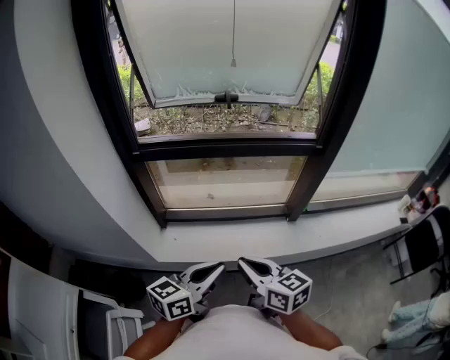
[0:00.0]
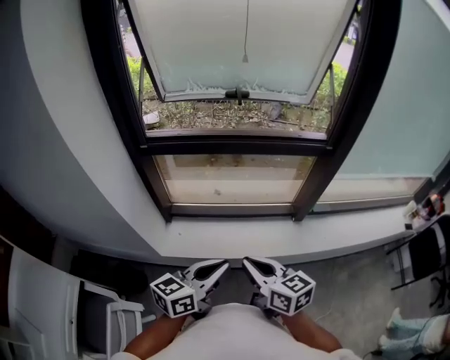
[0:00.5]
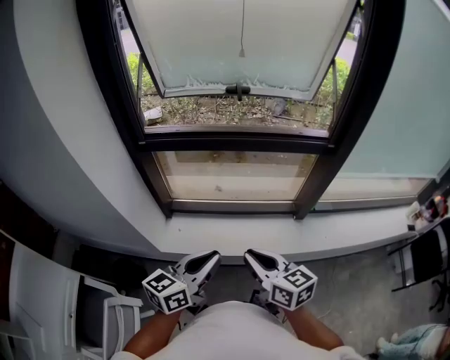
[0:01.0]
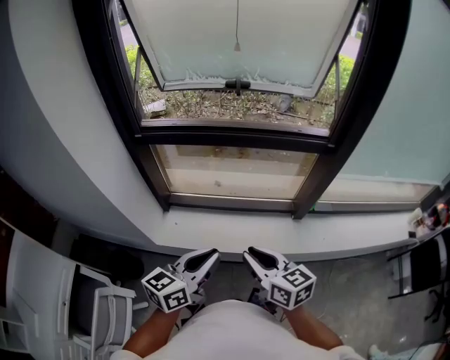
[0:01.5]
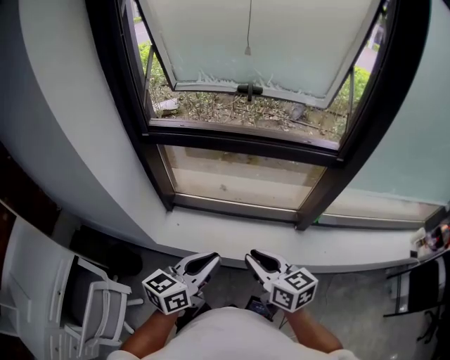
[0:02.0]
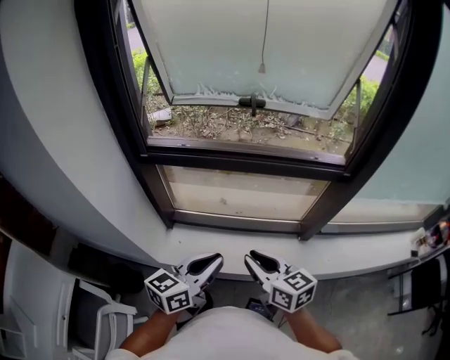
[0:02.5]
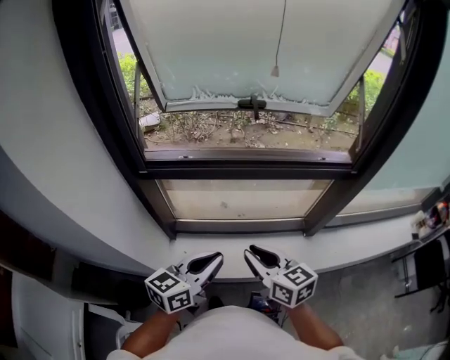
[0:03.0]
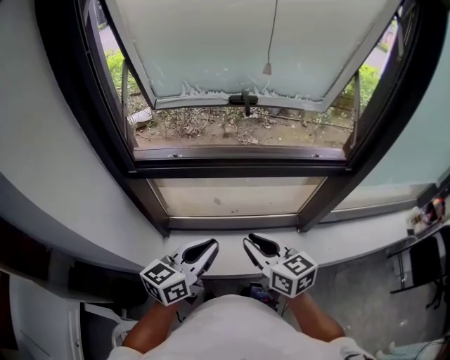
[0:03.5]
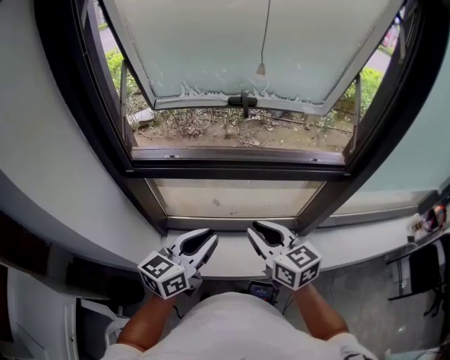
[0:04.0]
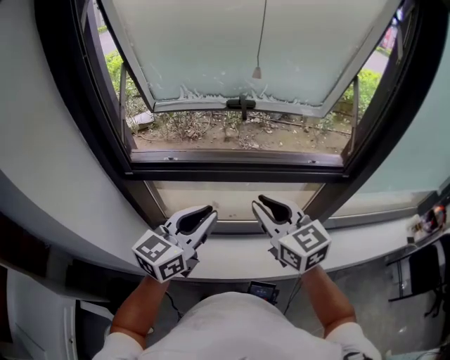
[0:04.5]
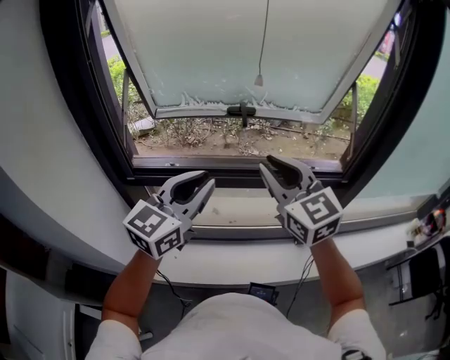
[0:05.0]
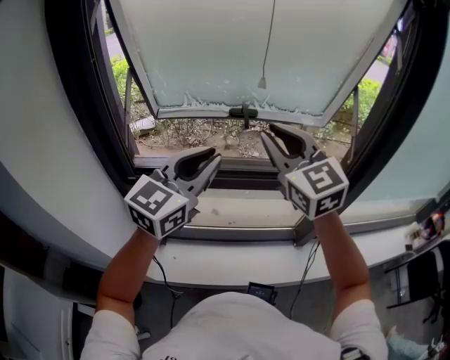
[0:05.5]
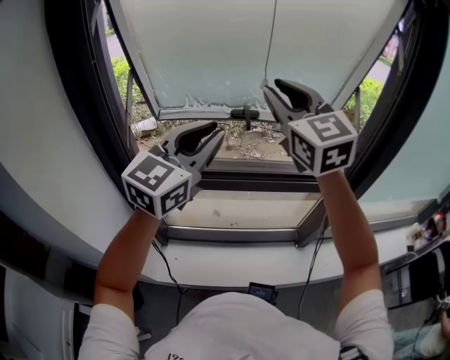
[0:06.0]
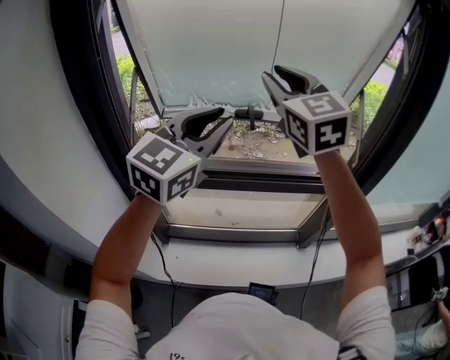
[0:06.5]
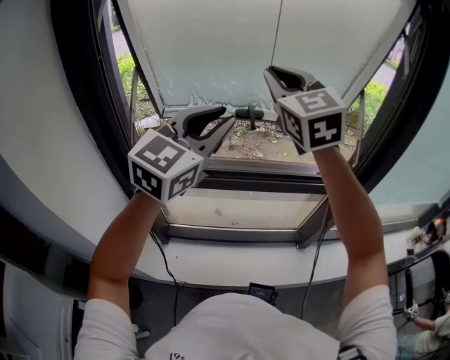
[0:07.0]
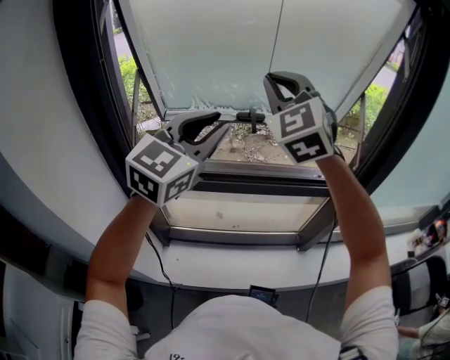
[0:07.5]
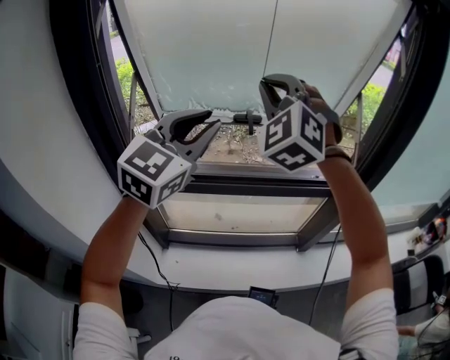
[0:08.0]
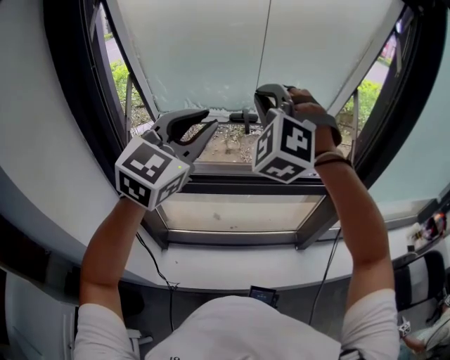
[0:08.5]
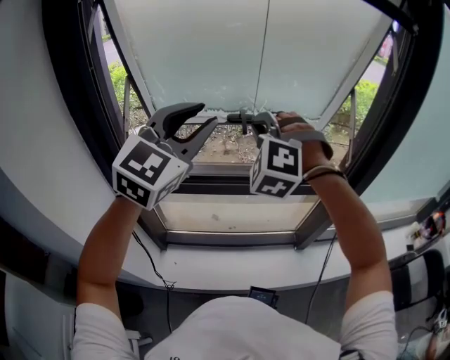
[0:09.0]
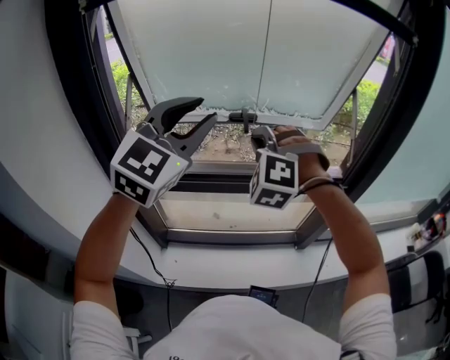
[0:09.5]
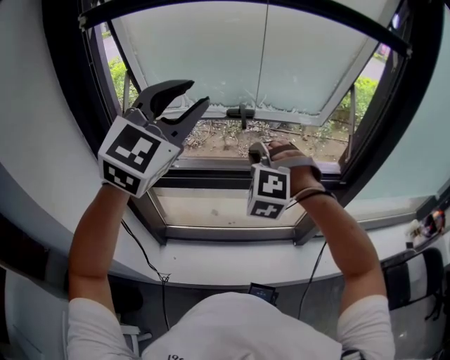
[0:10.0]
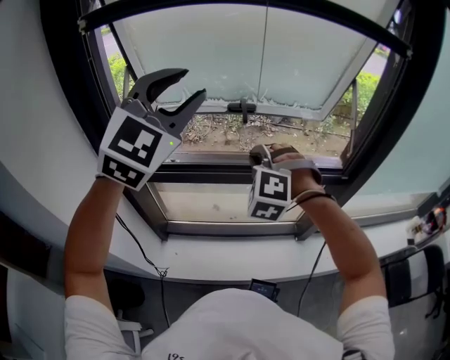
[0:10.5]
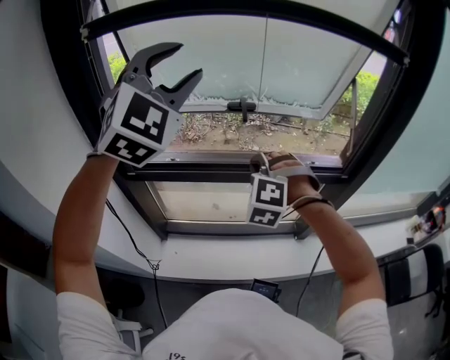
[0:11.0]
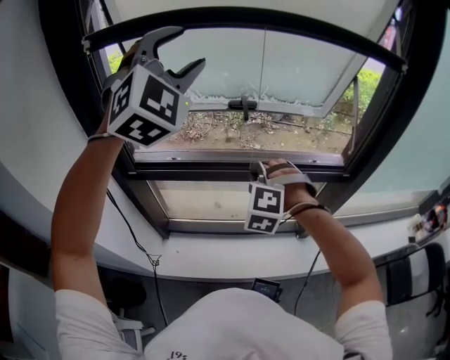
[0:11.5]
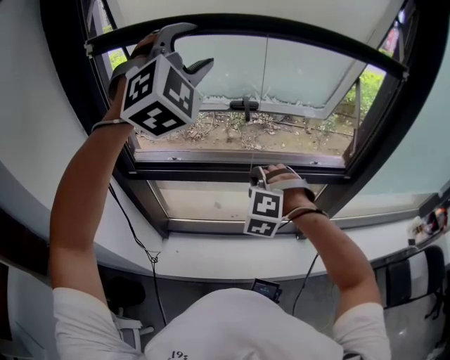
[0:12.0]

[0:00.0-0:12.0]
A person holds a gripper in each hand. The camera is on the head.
0:00.0 to 0:02.0: The left gripper ends up some 5 cm from where it was. The right gripper moves to the right and forward, about 10 cm.
0:02.0 to 0:04.0: The left gripper travels forward and to the left by about 20 cm. Meanwhile the right gripper goes roughly 20 cm forward.
0:04.0 to 0:06.0: Both grippers travel together upward and forward, approximately 30 cm. The right gripper rotates some 40 degrees; the left gripper swivels about 40 degrees.
0:06.0 to 0:08.0: The right gripper rolls counterclockwise, seen from behind, by some 40 degrees.
0:08.0 to 0:10.0: The right gripper shifts roughly 20 cm downward, and rotates some 30 degrees; the left gripper heads upward, covering some 5 cm.
0:10.0 to 0:12.0: The right gripper shifts roughly 10 cm downward. Meanwhile the left gripper travels forward by approximately 5 cm, swivels approximately 40 degrees, and opens.

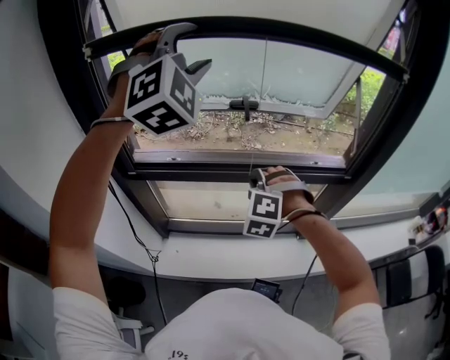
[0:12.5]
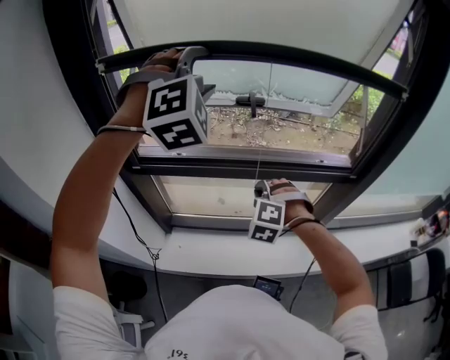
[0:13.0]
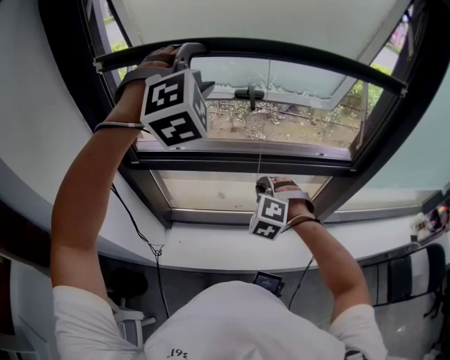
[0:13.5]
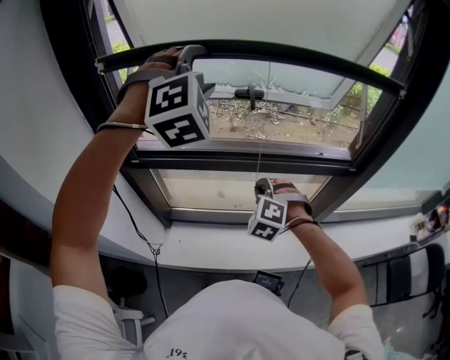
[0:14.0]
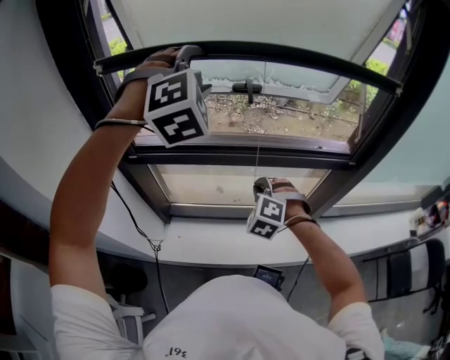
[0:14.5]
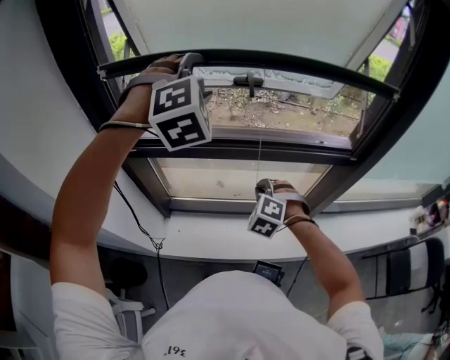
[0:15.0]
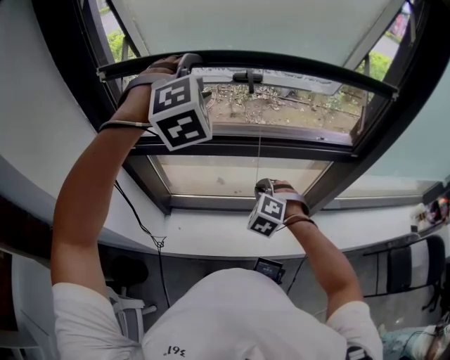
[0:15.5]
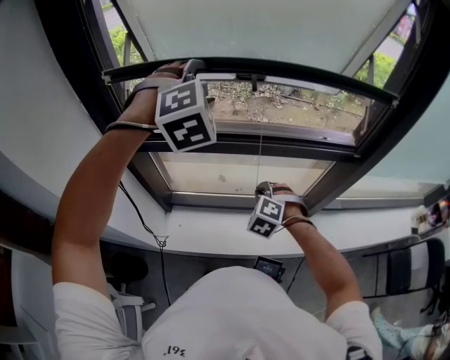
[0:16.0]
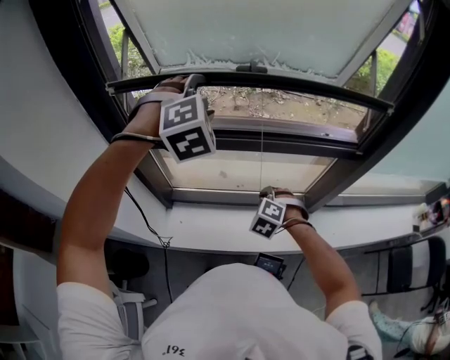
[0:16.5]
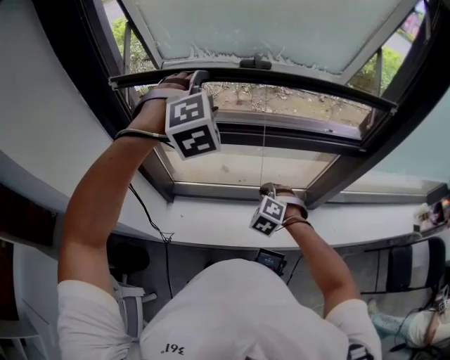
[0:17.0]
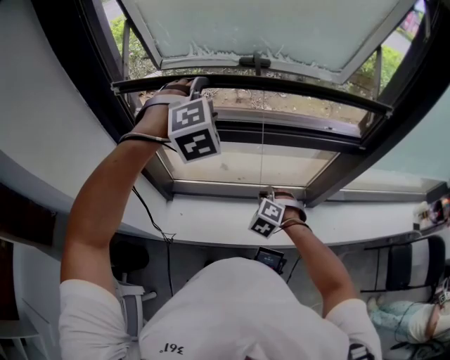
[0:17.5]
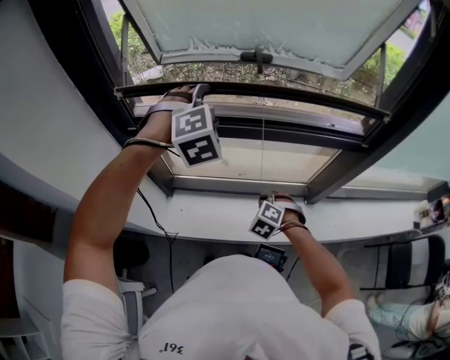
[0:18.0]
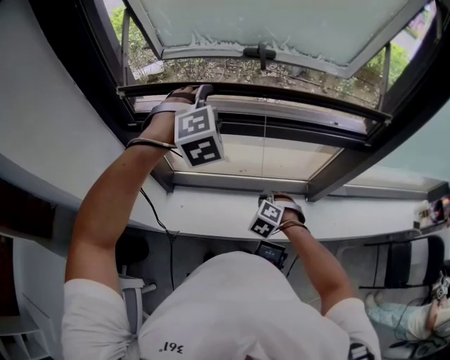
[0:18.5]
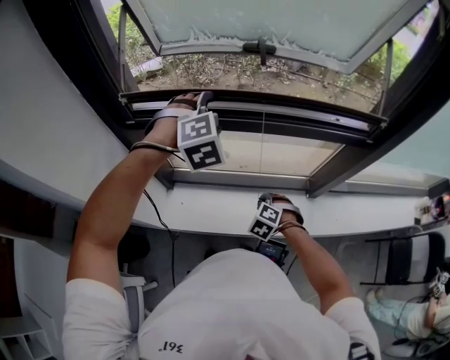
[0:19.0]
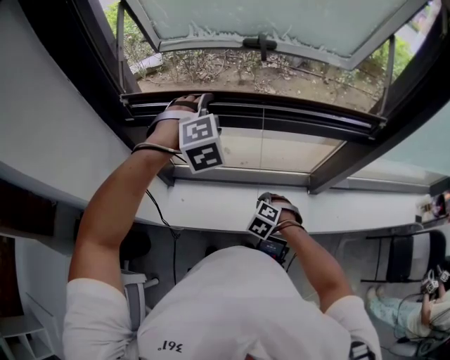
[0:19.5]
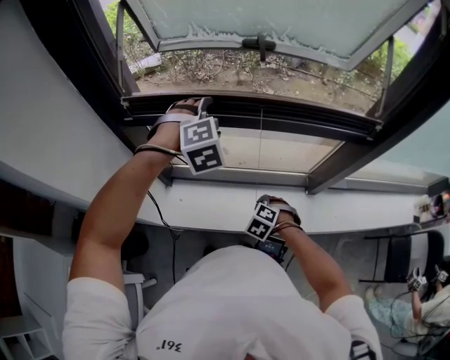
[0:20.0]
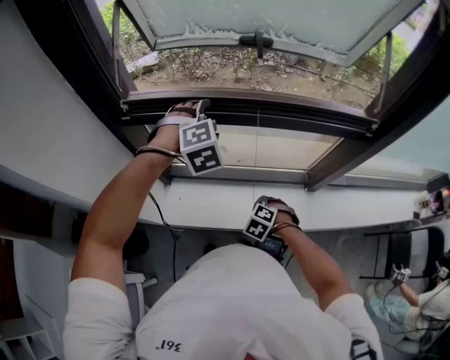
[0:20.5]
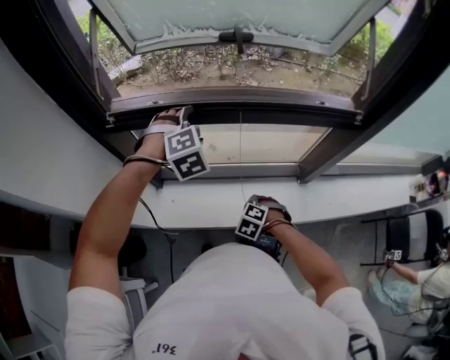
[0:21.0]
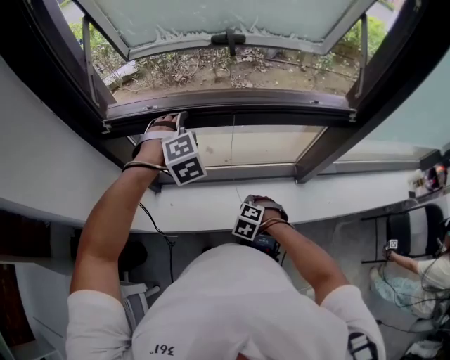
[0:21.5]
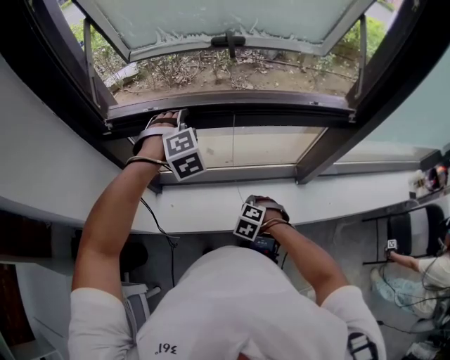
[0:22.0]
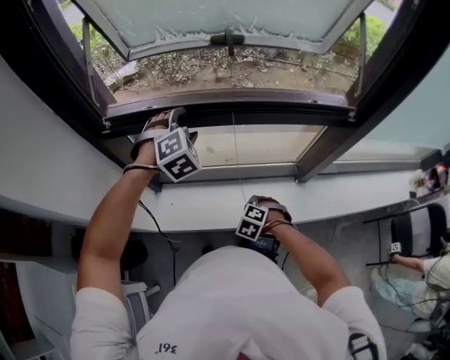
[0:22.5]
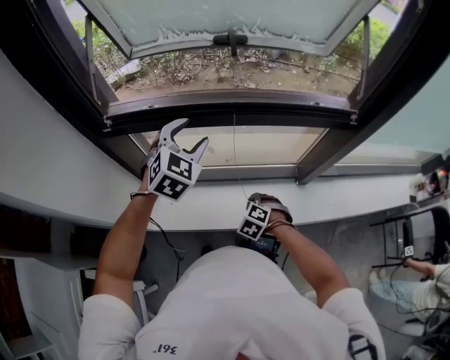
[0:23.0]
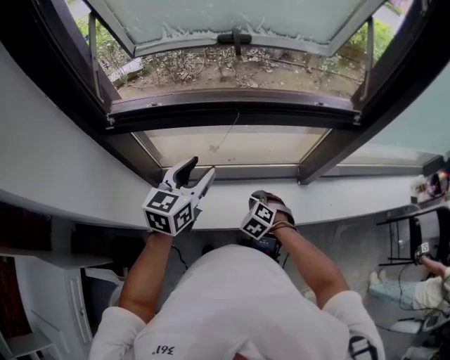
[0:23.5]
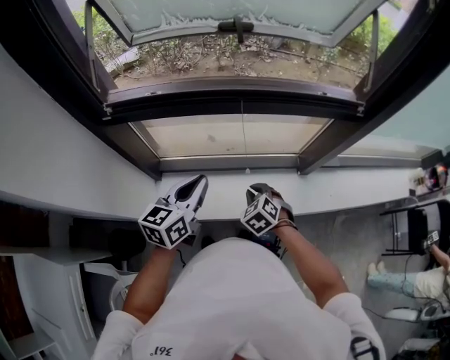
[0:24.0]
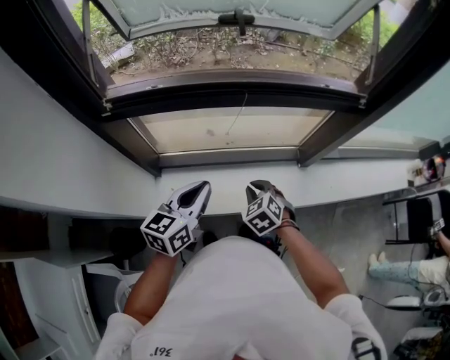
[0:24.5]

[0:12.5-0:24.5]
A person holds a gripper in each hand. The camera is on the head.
0:12.5 to 0:14.5: Both grippers move downward, about 10 cm.
0:14.5 to 0:16.5: Both grippers move downward, about 10 cm.
0:16.5 to 0:18.5: The two grippers go some 10 cm downward.
0:18.5 to 0:20.5: The right gripper travels downward and backward by roughly 5 cm, while the left gripper shifts roughly 10 cm downward.
0:20.5 to 0:22.5: The grippers stay close to where they were, moving slightly.
0:22.5 to 0:24.5: The right gripper moves upward, roughly 5 cm, and swivels roughly 30 degrees. The left gripper is displaced backward by some 20 cm, rolls counterclockwise, seen from behind, by about 70 degrees, and closes up.

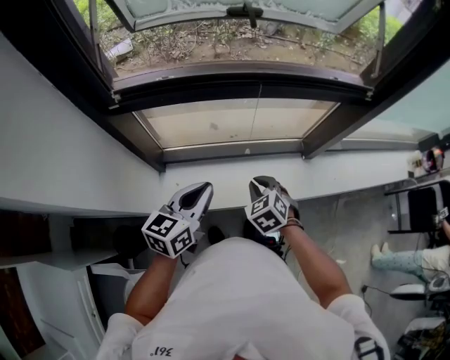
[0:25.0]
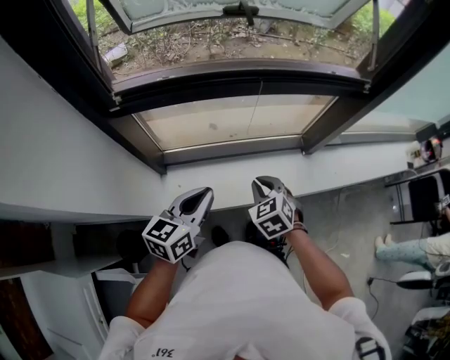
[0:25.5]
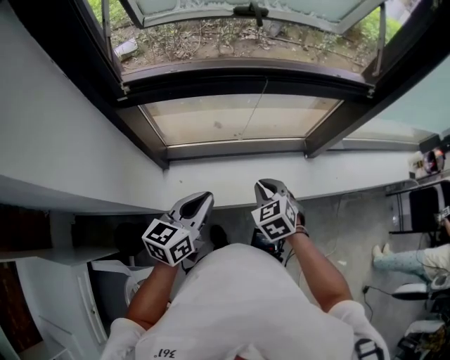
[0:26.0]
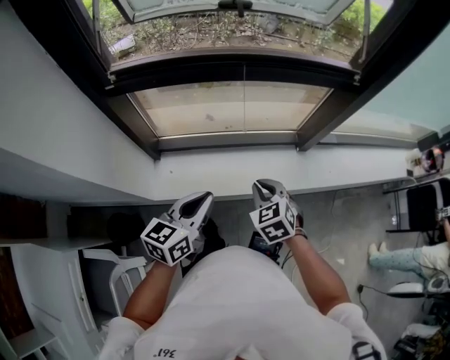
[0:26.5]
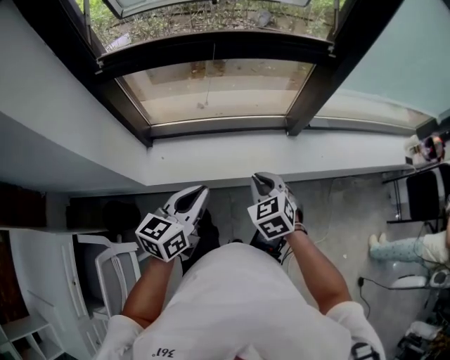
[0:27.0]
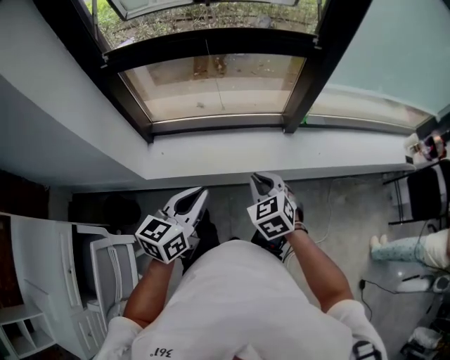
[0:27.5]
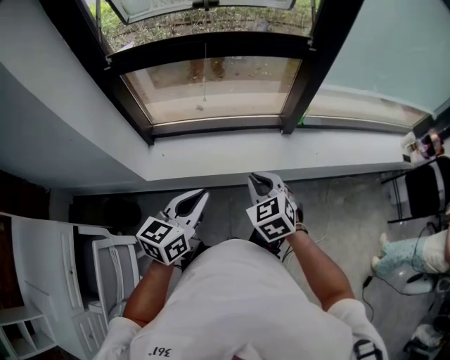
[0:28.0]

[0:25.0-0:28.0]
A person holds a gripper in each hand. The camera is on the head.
0:25.0 to 0:26.5: The grippers both shift backward and to the right by roughly 10 cm.
0:26.5 to 0:28.0: The two grippers go some 20 cm backward and to the right.
